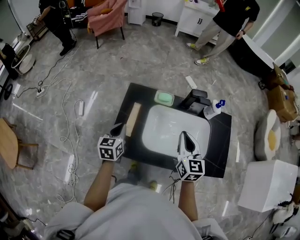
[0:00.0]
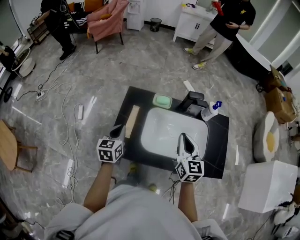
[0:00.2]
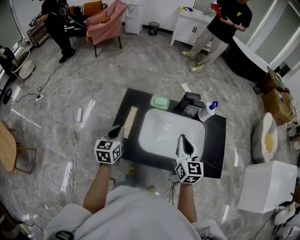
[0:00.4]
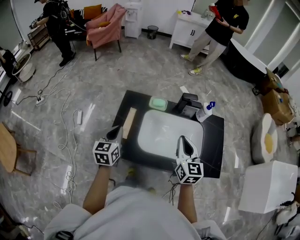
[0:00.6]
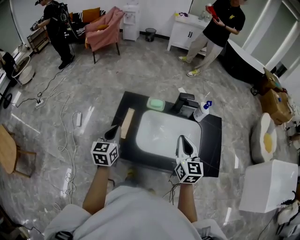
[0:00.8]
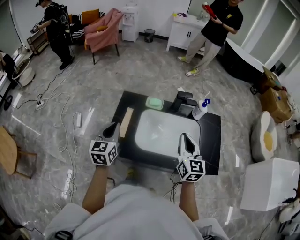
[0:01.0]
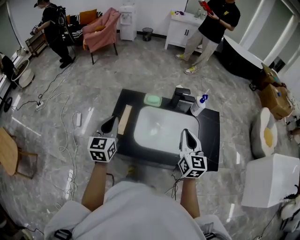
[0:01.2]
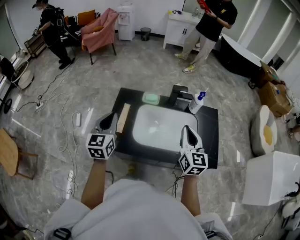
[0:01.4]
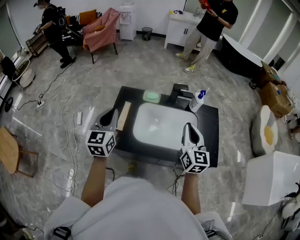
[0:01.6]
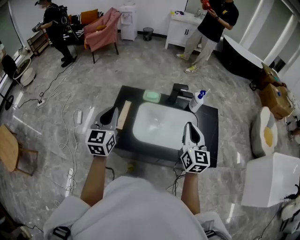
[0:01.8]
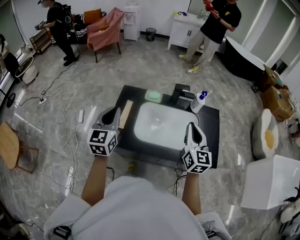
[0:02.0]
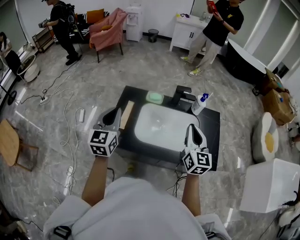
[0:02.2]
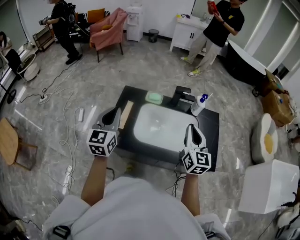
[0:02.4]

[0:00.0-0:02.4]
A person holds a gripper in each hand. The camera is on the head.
0:00.0 to 0:01.2: The left gripper travels upward and backward by about 15 cm; the right gripper travels to the right, backward and upward by approximately 15 cm.
0:01.2 to 0:02.4: The left gripper goes roughly 5 cm upward.

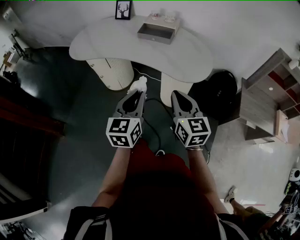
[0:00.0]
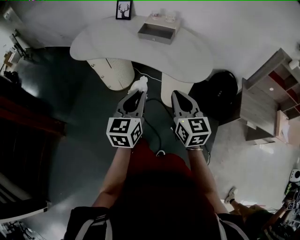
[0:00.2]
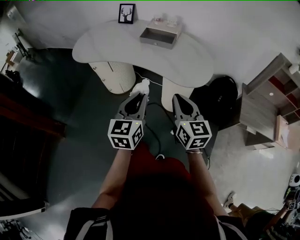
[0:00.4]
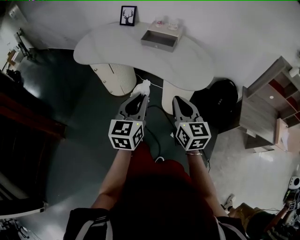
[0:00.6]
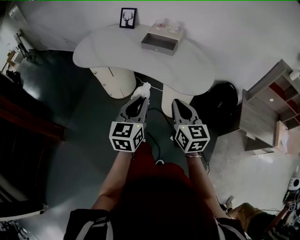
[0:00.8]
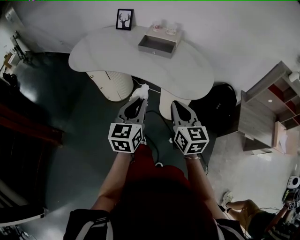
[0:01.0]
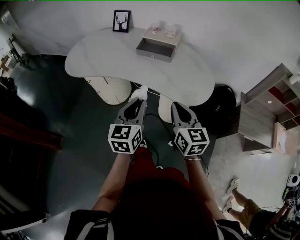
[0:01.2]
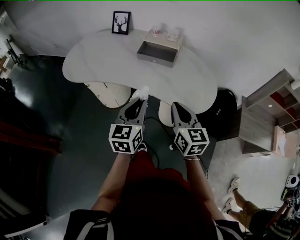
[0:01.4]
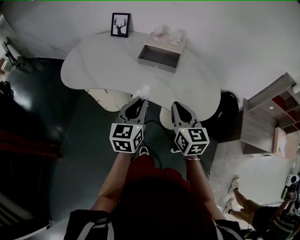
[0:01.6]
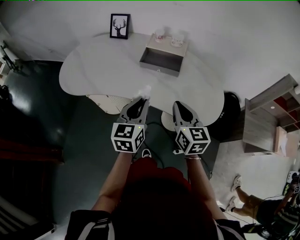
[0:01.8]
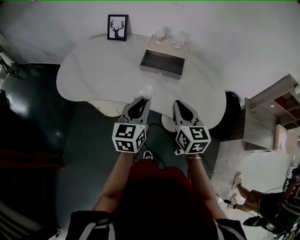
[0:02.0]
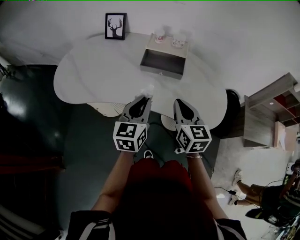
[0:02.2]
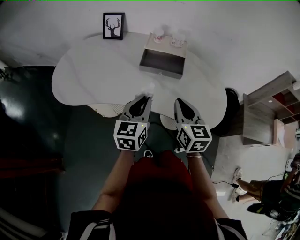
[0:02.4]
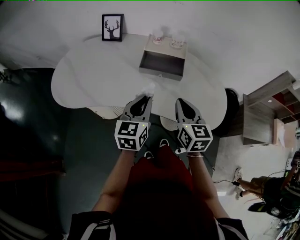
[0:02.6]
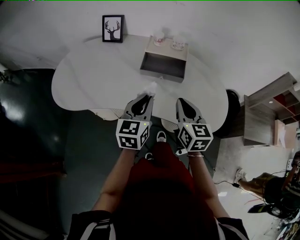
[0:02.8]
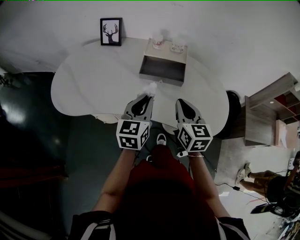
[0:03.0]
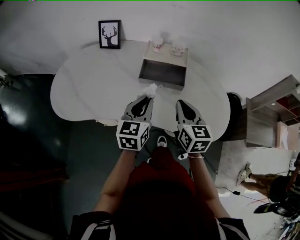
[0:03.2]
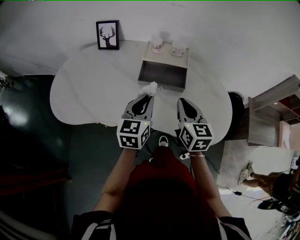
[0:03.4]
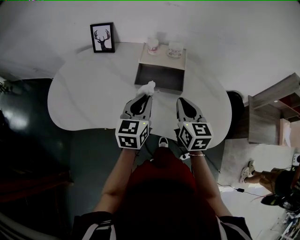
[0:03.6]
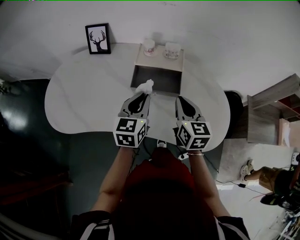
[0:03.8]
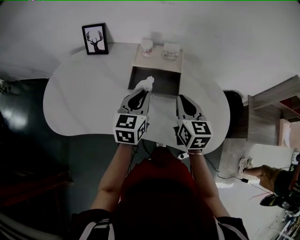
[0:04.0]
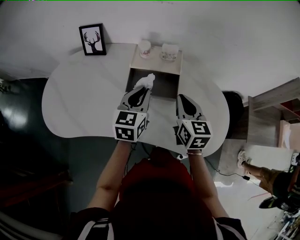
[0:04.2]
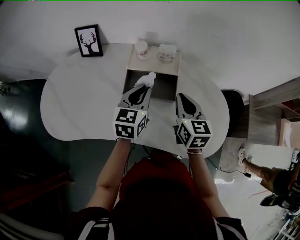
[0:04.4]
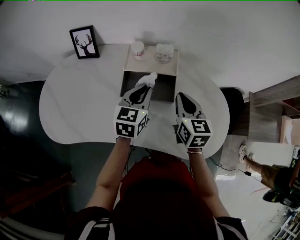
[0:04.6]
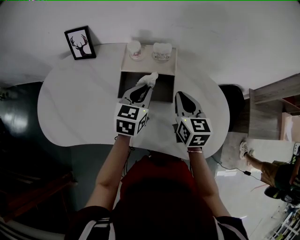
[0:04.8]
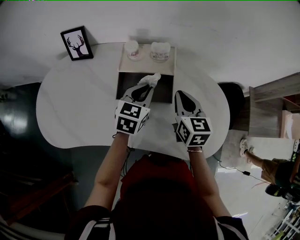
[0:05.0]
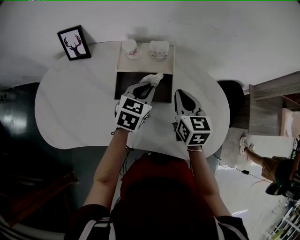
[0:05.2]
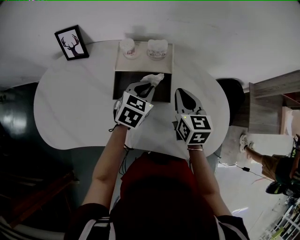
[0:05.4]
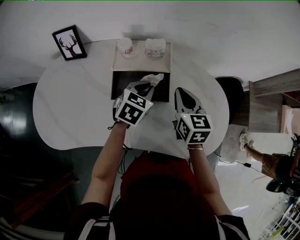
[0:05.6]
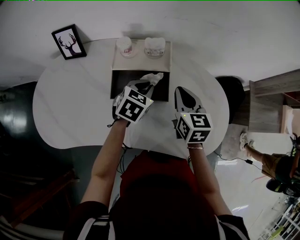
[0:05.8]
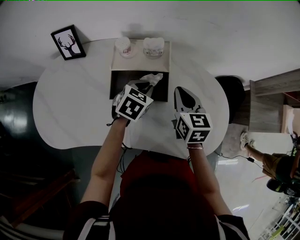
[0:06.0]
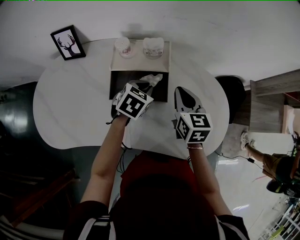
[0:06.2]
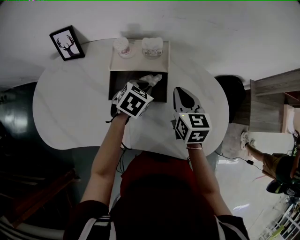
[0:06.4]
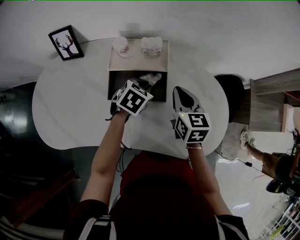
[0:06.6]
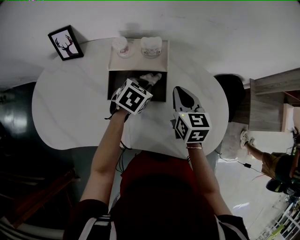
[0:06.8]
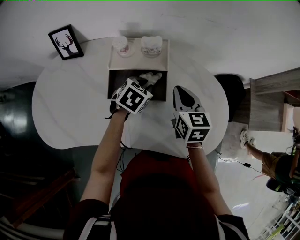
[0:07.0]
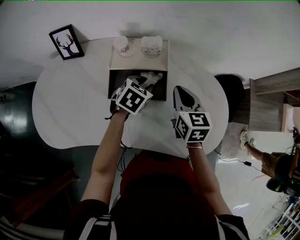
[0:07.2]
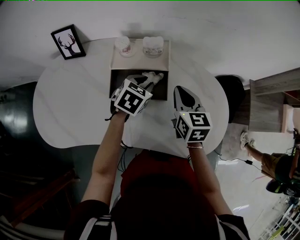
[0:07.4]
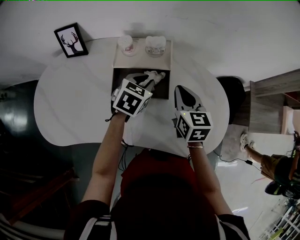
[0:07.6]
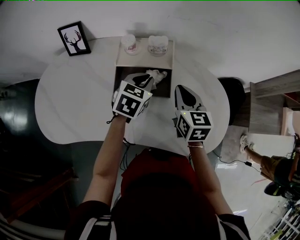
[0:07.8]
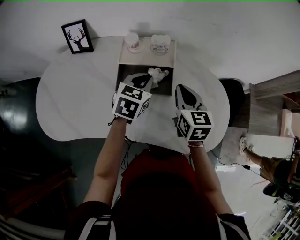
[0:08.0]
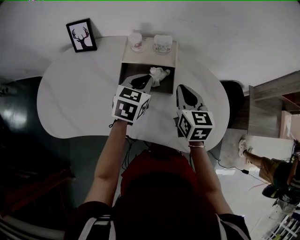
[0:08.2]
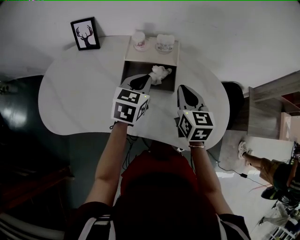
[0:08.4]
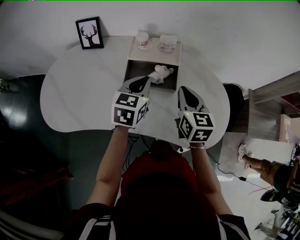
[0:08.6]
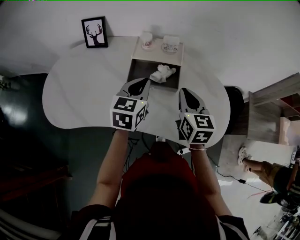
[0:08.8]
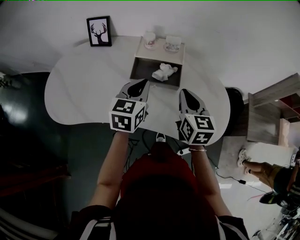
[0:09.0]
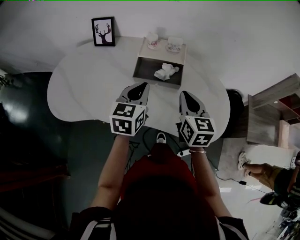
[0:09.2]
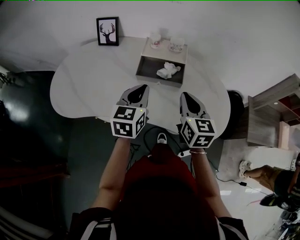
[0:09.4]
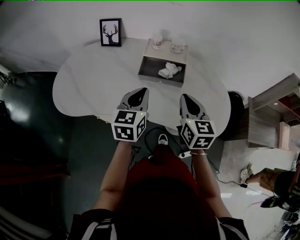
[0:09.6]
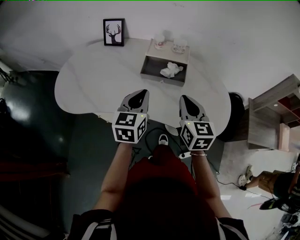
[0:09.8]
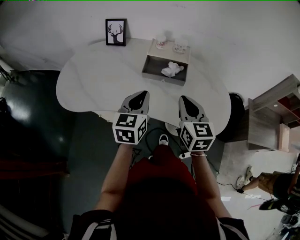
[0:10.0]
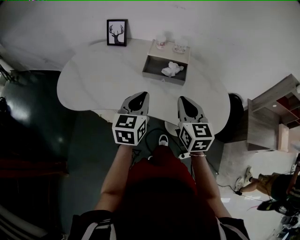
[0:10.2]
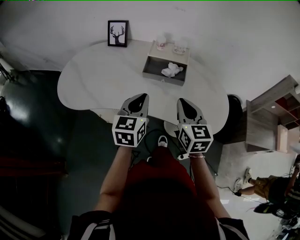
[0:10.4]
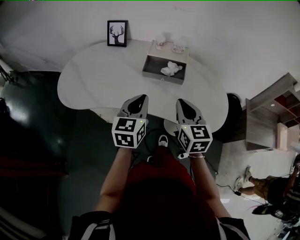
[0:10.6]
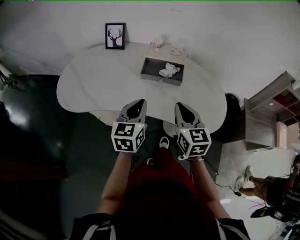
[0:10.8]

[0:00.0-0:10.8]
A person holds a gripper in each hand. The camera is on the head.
0:00.0 to 0:01.6: Both grippers move forward, some 20 cm.
0:01.6 to 0:03.0: The two grippers go approximately 15 cm forward.
0:03.0 to 0:04.6: Both grippers move forward, about 15 cm.
0:04.6 to 0:06.2: The right gripper moves roughly 5 cm. Meanwhile the left gripper moves downward, roughly 10 cm, and rotates about 40 degrees.
0:06.2 to 0:07.8: The left gripper goes about 5 cm upward.
0:07.8 to 0:09.2: The left gripper travels backward, upward and to the left by about 20 cm, and turns by approximately 30 degrees, while the right gripper is displaced backward and upward by some 10 cm.
0:09.2 to 0:10.8: The grippers both shift backward by roughly 10 cm.

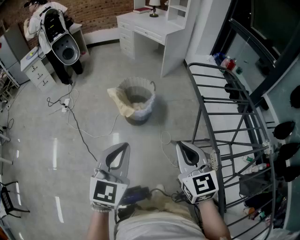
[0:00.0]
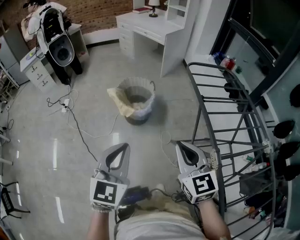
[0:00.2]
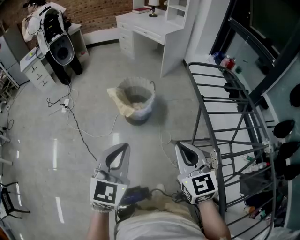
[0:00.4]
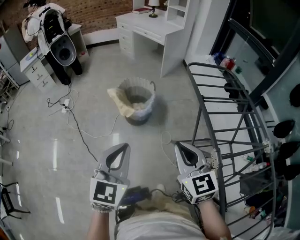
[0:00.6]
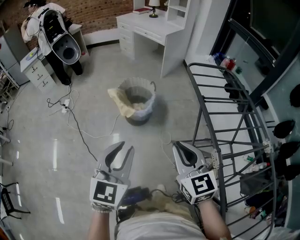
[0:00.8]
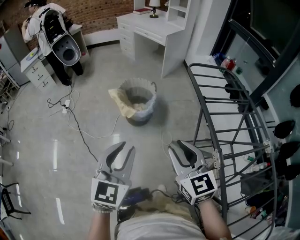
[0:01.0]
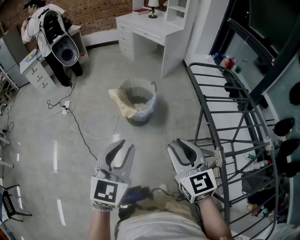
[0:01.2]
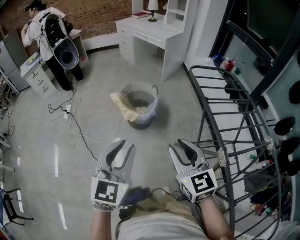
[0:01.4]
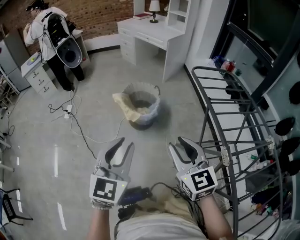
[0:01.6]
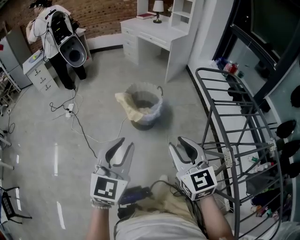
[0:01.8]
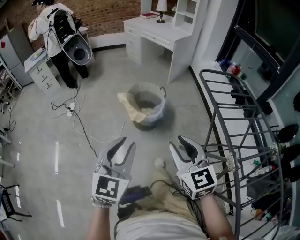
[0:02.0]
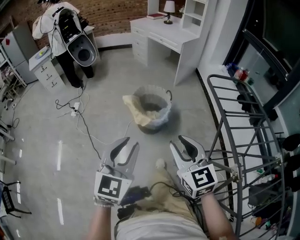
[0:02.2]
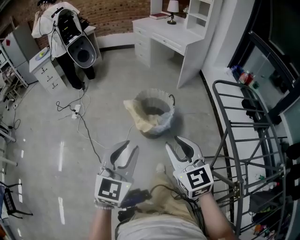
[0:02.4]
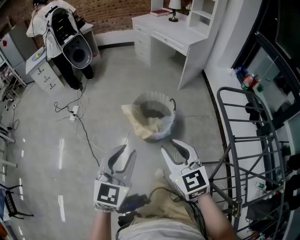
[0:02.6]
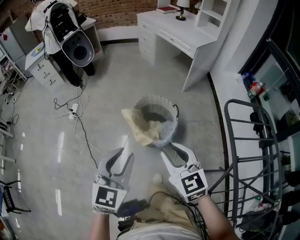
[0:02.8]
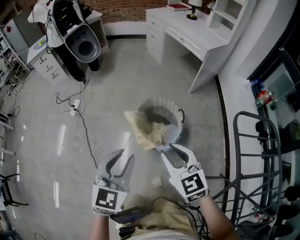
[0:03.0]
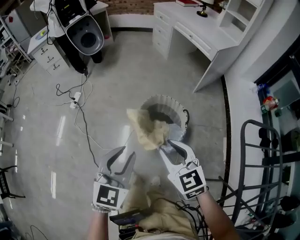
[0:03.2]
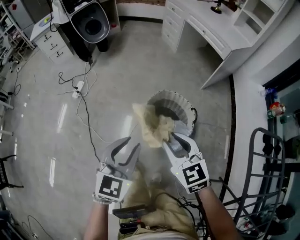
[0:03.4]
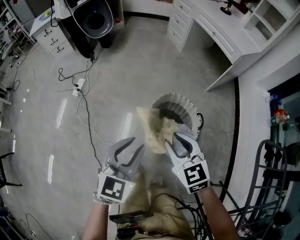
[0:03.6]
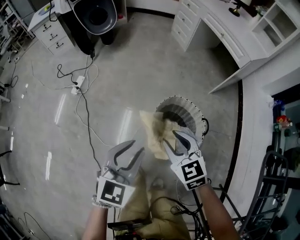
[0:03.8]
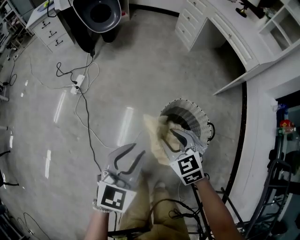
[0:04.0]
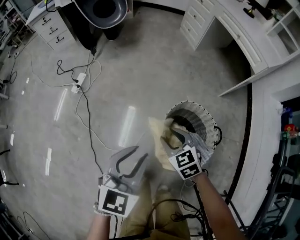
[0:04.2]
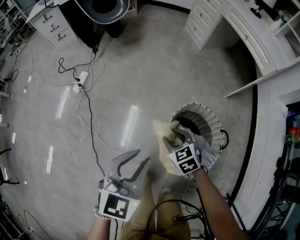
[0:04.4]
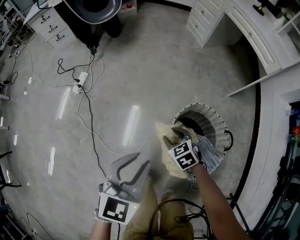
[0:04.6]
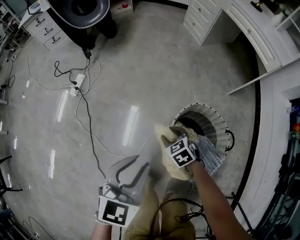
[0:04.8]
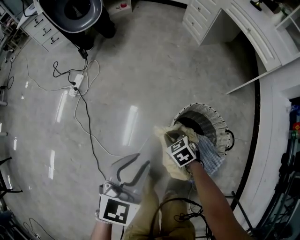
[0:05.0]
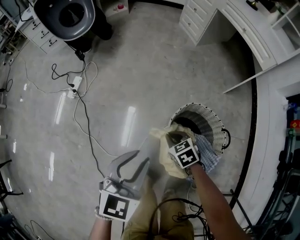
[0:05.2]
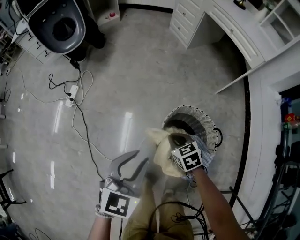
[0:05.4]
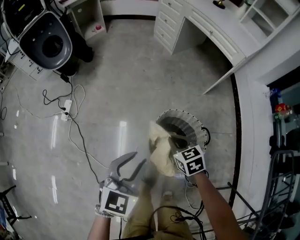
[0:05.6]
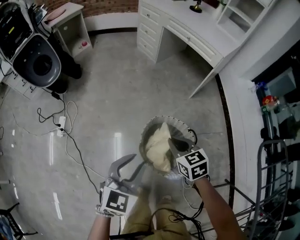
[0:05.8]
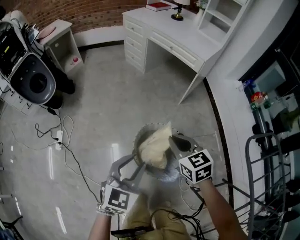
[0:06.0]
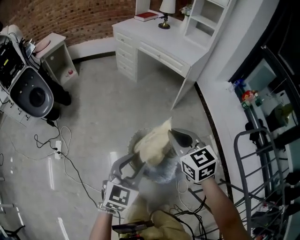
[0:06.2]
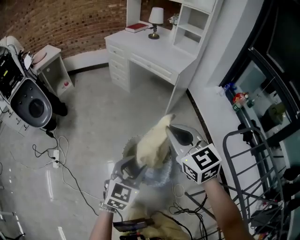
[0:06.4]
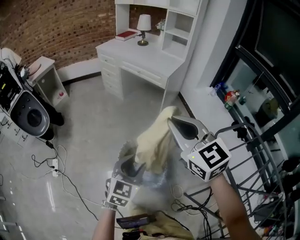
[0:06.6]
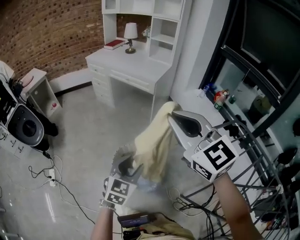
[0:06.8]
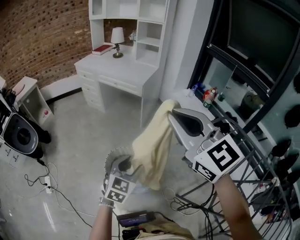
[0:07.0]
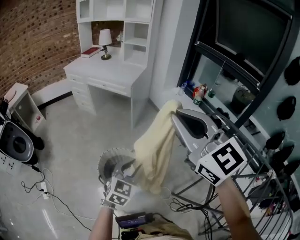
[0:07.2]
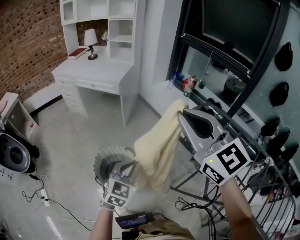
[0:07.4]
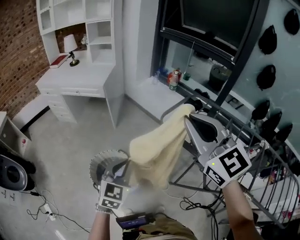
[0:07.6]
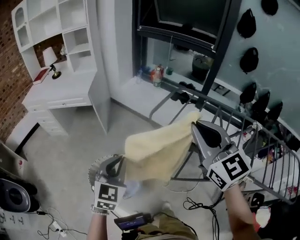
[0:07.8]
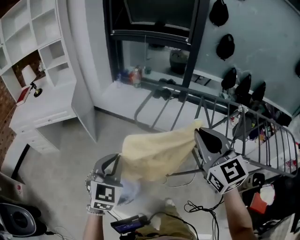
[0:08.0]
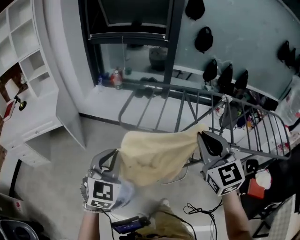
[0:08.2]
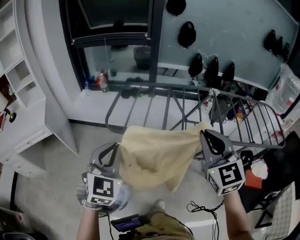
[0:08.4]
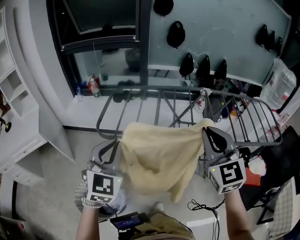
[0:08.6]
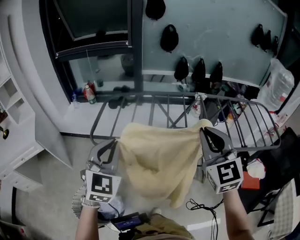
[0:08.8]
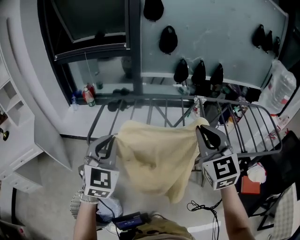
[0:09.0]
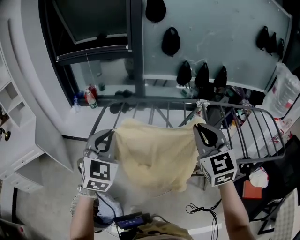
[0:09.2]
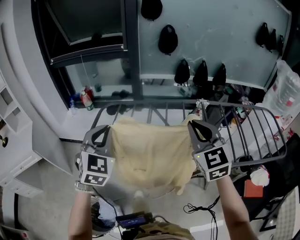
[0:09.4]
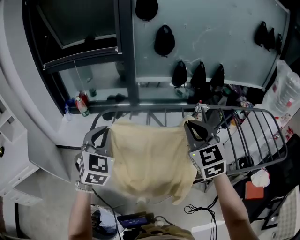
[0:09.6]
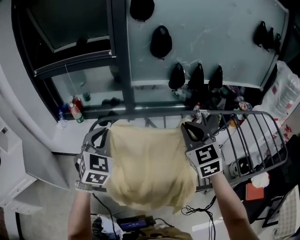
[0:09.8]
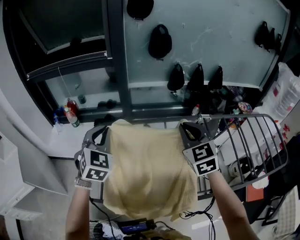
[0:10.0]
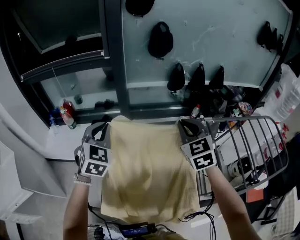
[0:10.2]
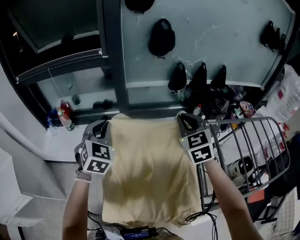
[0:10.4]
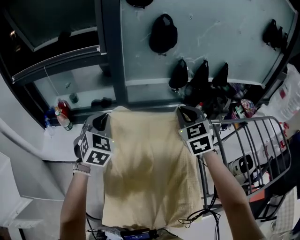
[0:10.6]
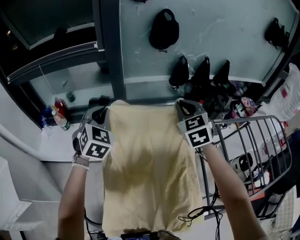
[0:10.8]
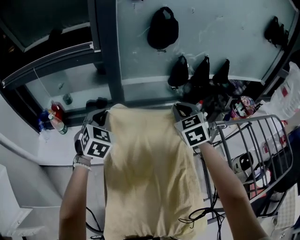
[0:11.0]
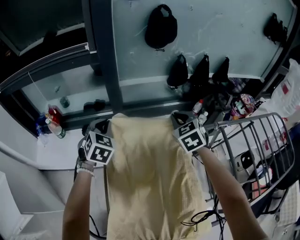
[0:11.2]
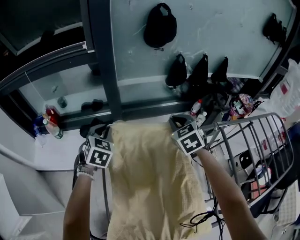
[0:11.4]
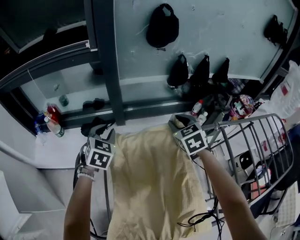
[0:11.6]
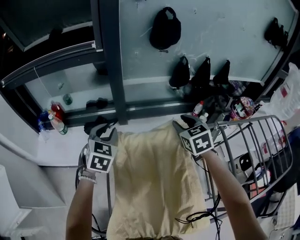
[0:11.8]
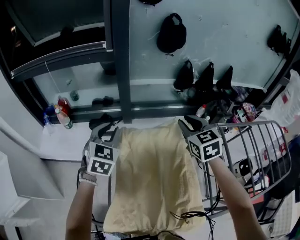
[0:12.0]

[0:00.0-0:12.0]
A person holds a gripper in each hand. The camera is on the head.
0:00.0 to 0:01.6: The grippers both shift to the left by roughly 5 cm. The right gripper opens its fingers; the left gripper opens.
0:01.6 to 0:03.0: The two grippers go about 35 cm forward. The right gripper swivels approximately 20 degrees.
0:03.0 to 0:04.4: The left gripper goes roughly 30 cm forward and downward; the right gripper heads downward and forward, covering some 50 cm, and swivels approximately 30 degrees.
0:04.4 to 0:06.0: The left gripper shifts by roughly 15 cm, and changes its angle by approximately 20 degrees; the right gripper heads upward, covering some 30 cm, turns by roughly 40 degrees, and closes its fingers.
0:06.0 to 0:07.6: The left gripper changes place by approximately 30 cm, turns by some 30 degrees, and closes up, while the right gripper moves about 50 cm, and rotates some 50 degrees.
0:07.6 to 0:09.0: The left gripper shifts by roughly 30 cm, and swivels about 40 degrees. Meanwhile the right gripper changes place by some 40 cm, and turns by roughly 60 degrees.
0:09.0 to 0:10.4: The pair of grippers is taken forward, some 40 cm.
0:10.4 to 0:12.0: Both grippers move downward, some 5 cm. The right gripper opens.
